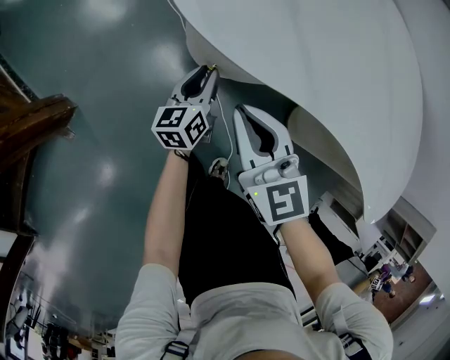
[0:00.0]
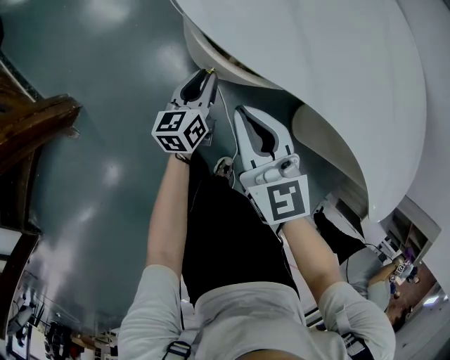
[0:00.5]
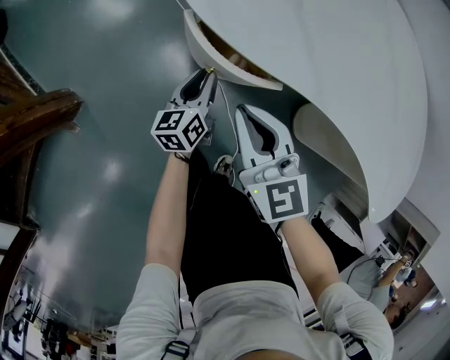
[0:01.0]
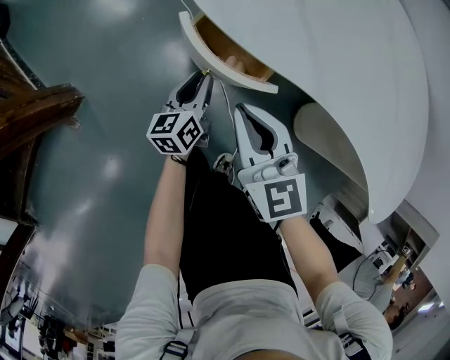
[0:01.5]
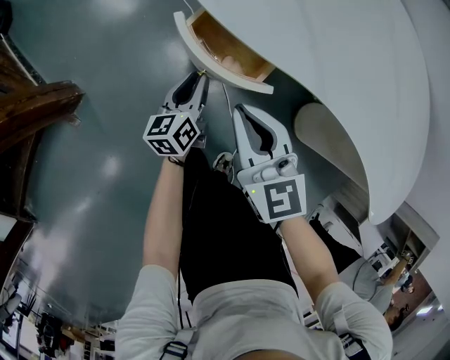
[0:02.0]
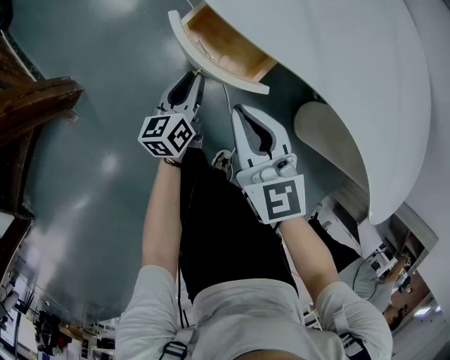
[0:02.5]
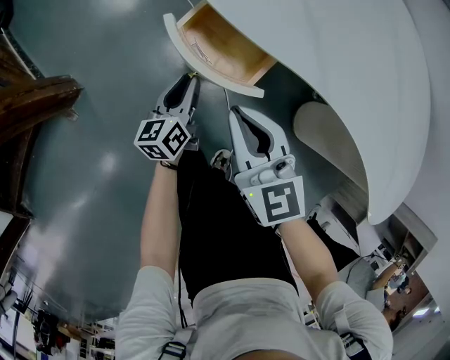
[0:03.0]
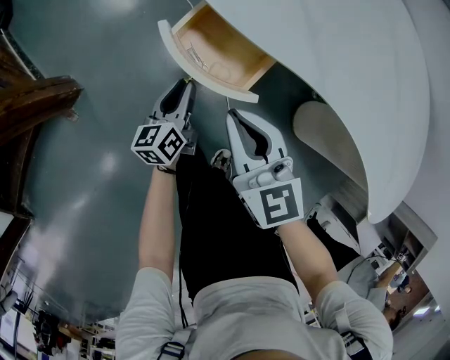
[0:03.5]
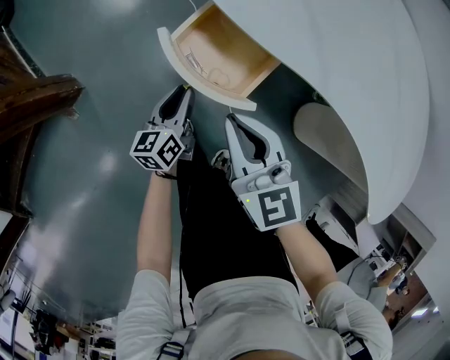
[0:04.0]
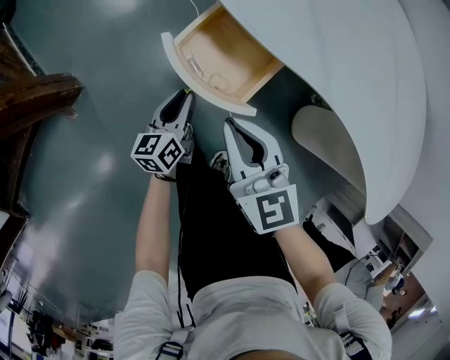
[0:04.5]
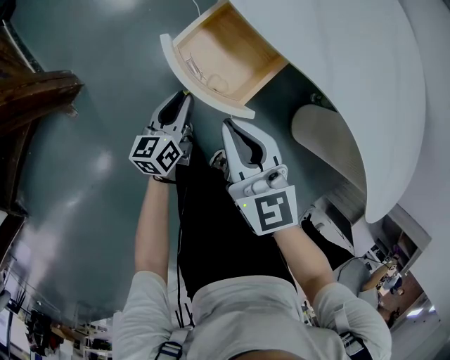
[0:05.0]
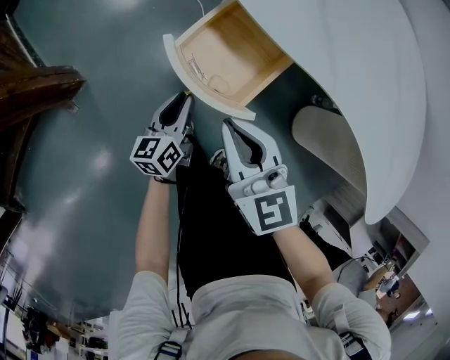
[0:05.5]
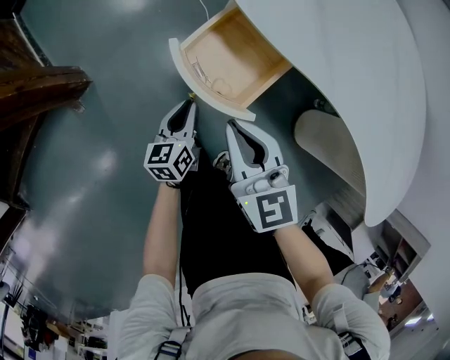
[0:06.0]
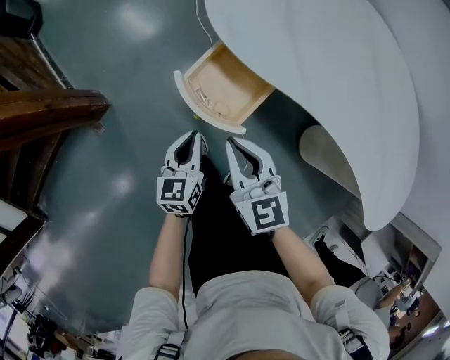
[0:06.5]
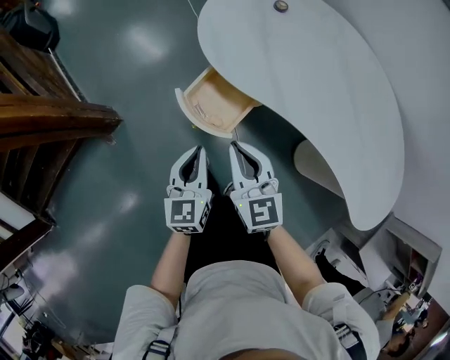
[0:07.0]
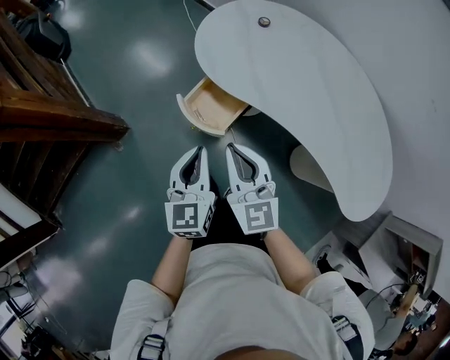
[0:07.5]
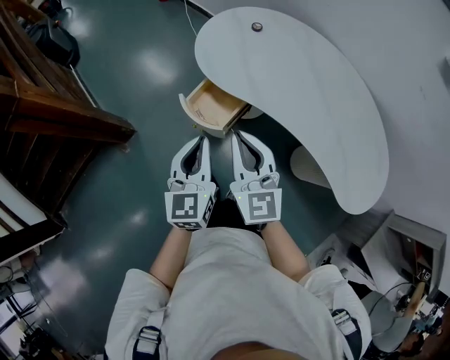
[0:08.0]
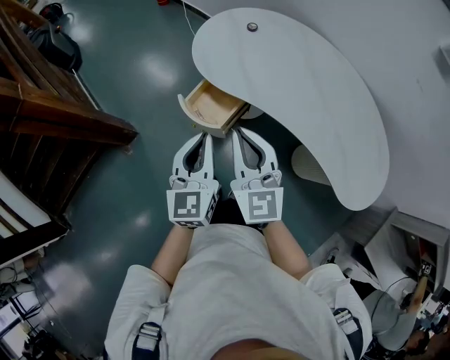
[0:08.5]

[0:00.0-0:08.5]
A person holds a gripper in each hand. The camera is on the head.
0:00.0 to 0:02.0: The left gripper shifts about 5 cm backward.
0:02.0 to 0:04.0: The left gripper moves backward, about 5 cm.
0:04.0 to 0:06.5: The left gripper shifts some 15 cm upward, and turns by about 20 degrees; the right gripper is displaced upward by roughly 5 cm.
0:06.5 to 0:08.5: Both grippers move upward, about 35 cm. The left gripper turns by about 20 degrees; the right gripper changes its angle by about 20 degrees.

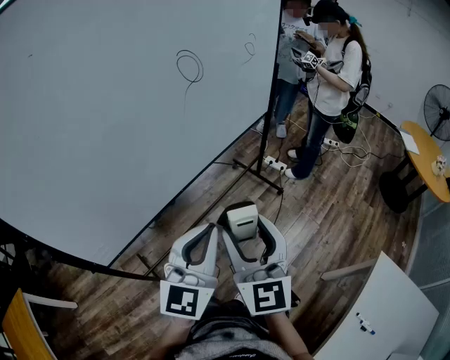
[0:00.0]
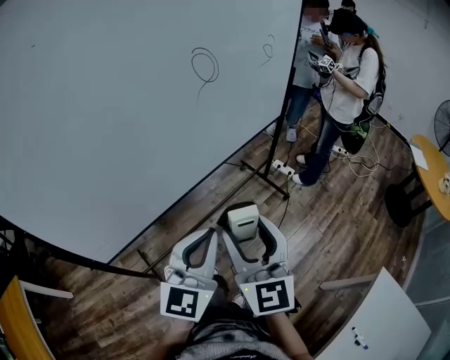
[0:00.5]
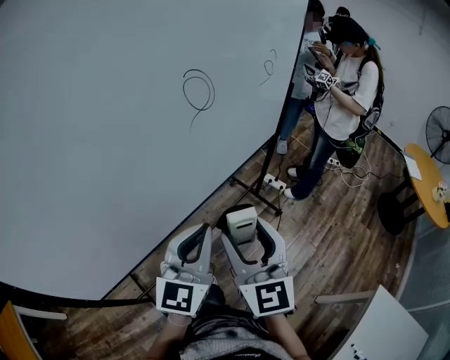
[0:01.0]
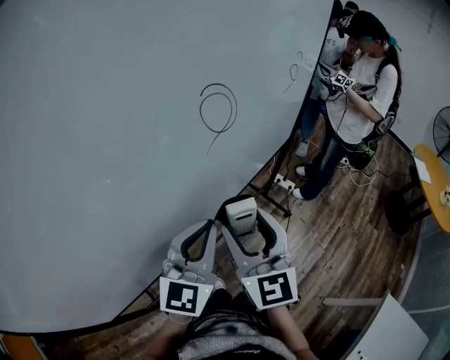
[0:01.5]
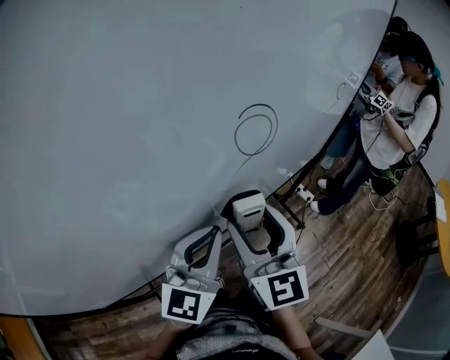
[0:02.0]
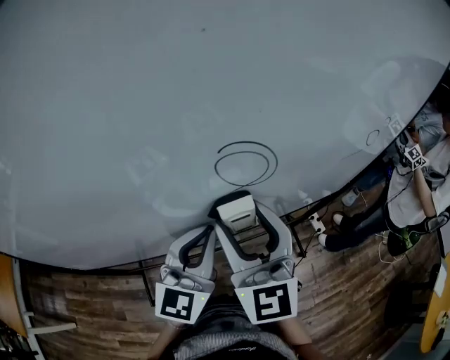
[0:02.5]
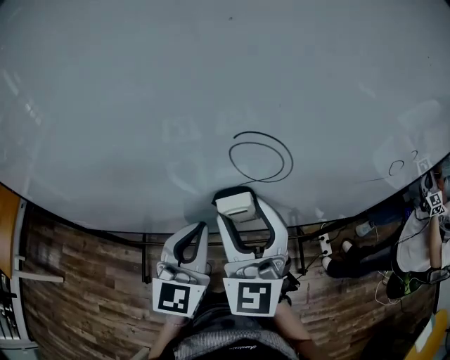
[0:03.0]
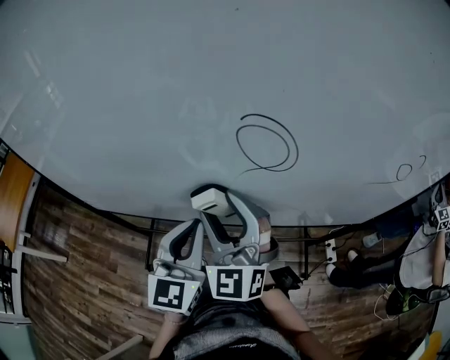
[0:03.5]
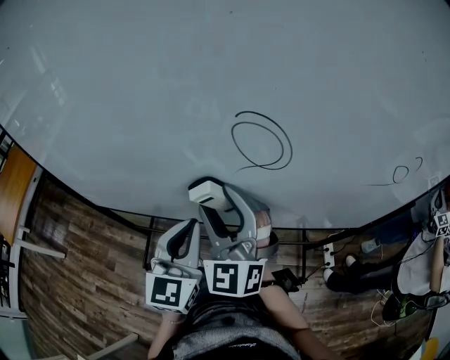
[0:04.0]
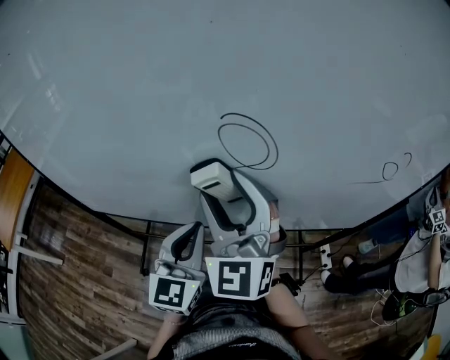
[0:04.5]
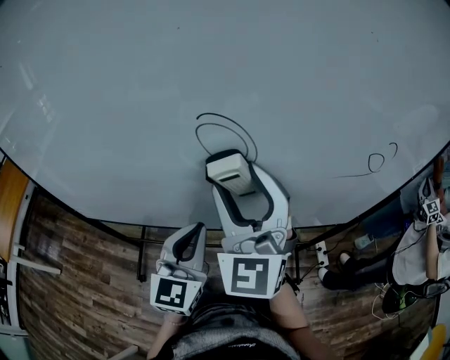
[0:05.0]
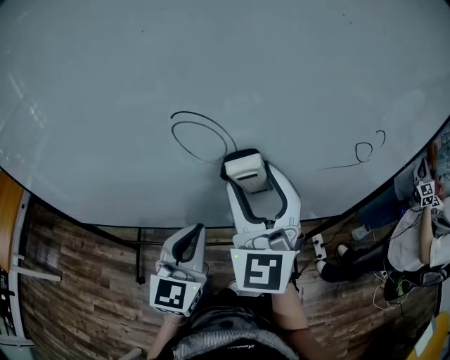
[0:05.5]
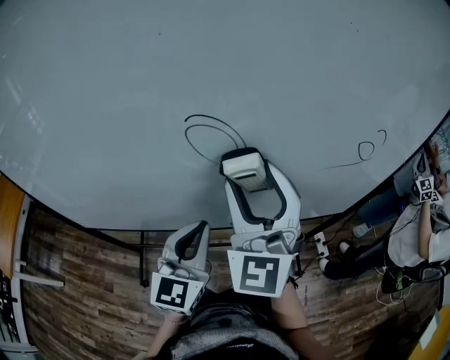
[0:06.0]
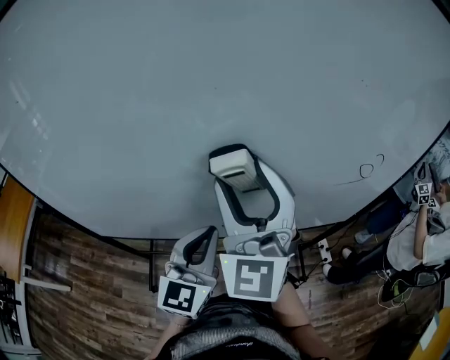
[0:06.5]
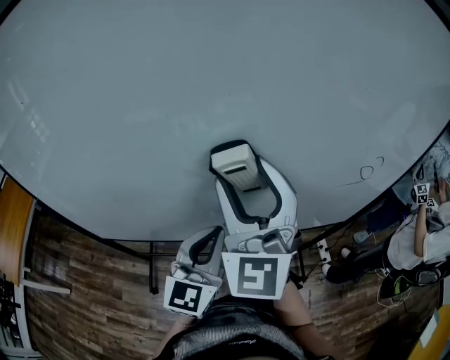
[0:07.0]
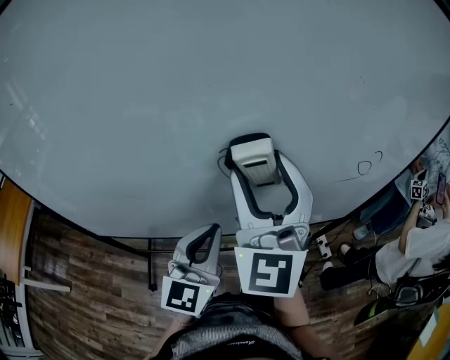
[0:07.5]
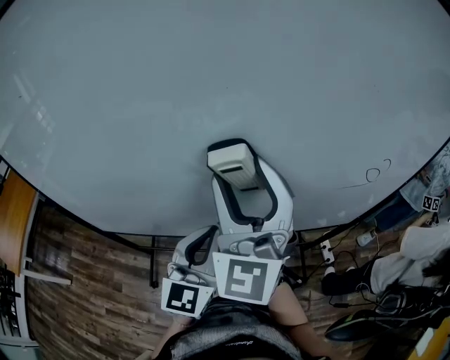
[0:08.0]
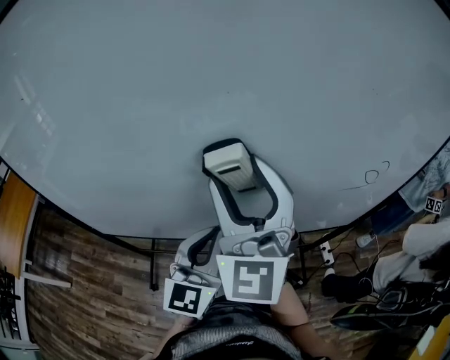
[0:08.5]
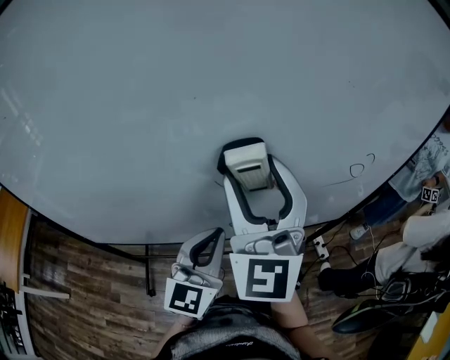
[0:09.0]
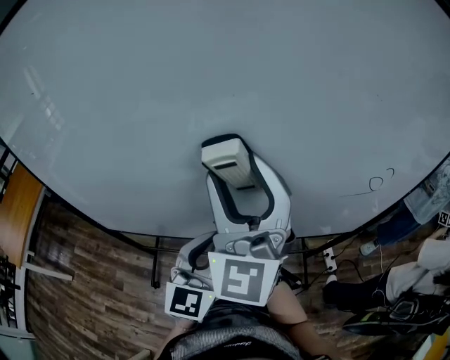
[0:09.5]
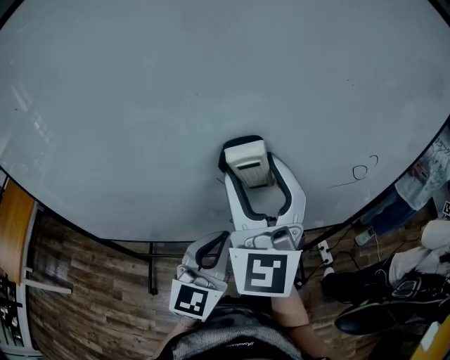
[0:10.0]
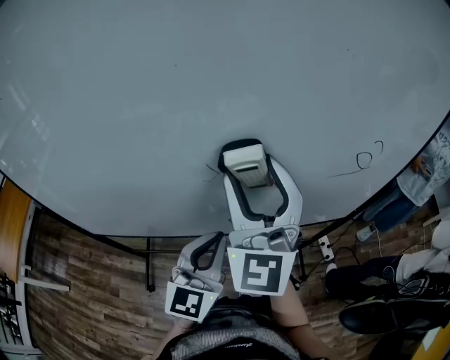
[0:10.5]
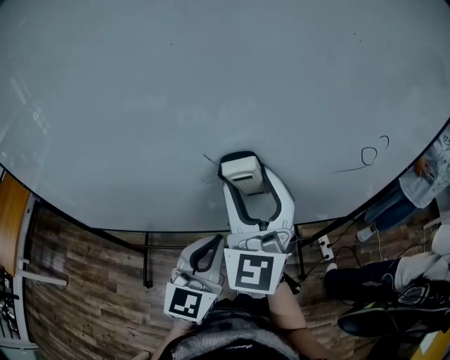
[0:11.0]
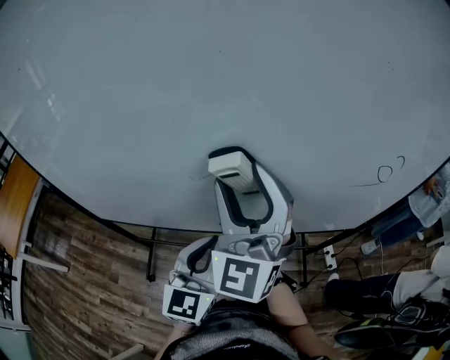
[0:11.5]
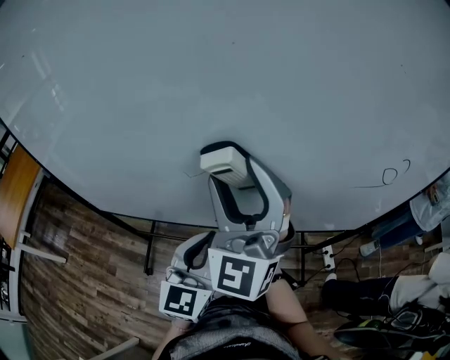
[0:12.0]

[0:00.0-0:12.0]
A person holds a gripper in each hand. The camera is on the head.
0:00.0 to 0:02.0: The two grippers go some 25 cm forward.
0:02.0 to 0:04.0: The left gripper swivels approximately 50 degrees. Meanwhile the right gripper ends up approximately 5 cm from where it was, and changes its angle by roughly 50 degrees.
0:04.0 to 0:06.0: The right gripper travels to the right and upward by some 15 cm, and swivels about 20 degrees. Meanwhile the left gripper goes roughly 10 cm to the right.
0:06.0 to 0:08.0: The left gripper goes roughly 5 cm upward. Meanwhile the right gripper is displaced upward and to the left by some 10 cm.
0:08.0 to 0:10.0: The right gripper swings left and right, some 5 cm each way, with 2 reversals. The left gripper moves left and right over roughly 5 cm, changing direction 2 times.
0:10.0 to 0:12.0: The right gripper shifts about 10 cm downward and to the left. The left gripper moves downward, approximately 5 cm.

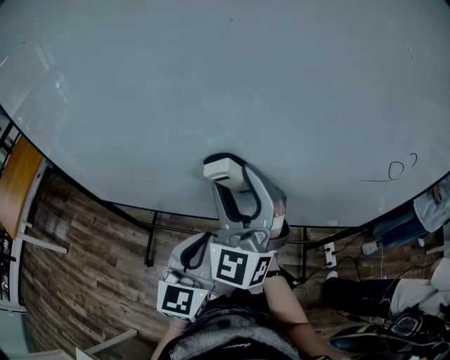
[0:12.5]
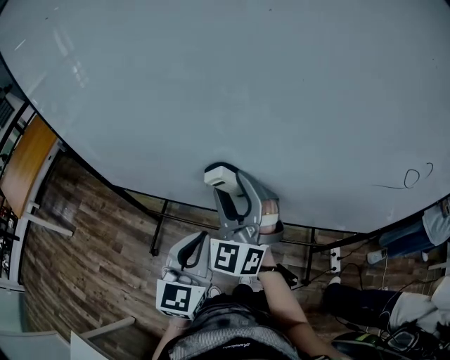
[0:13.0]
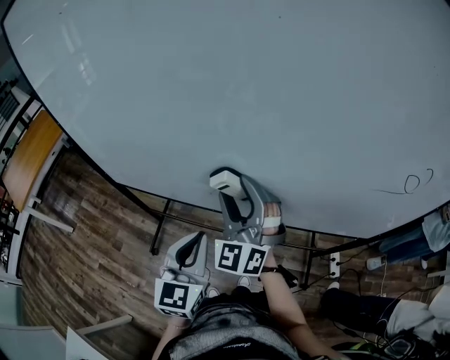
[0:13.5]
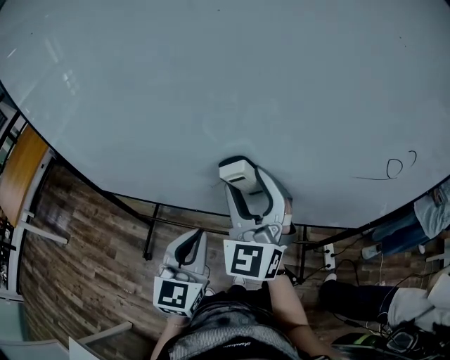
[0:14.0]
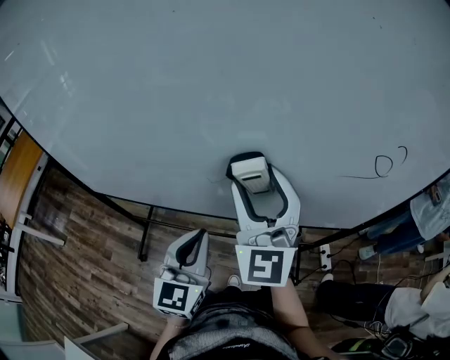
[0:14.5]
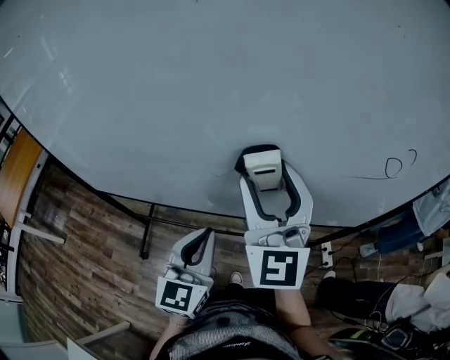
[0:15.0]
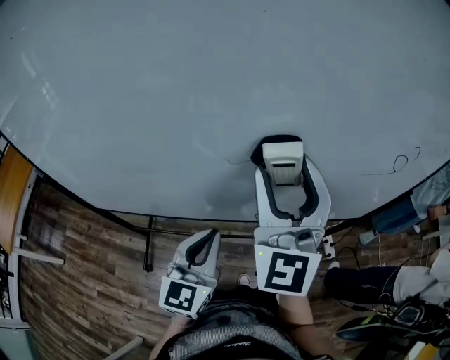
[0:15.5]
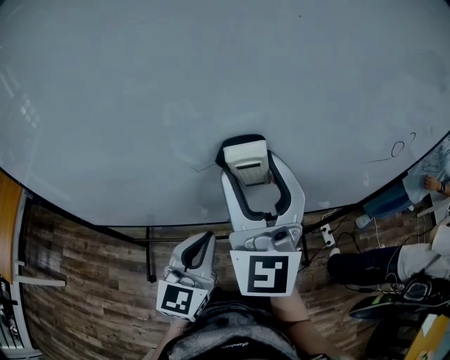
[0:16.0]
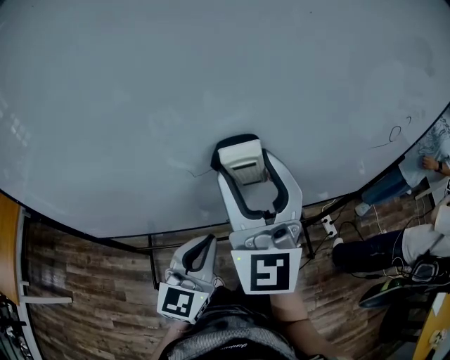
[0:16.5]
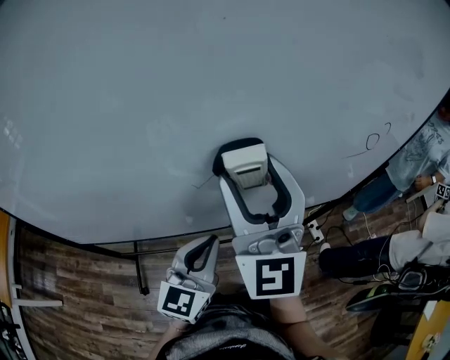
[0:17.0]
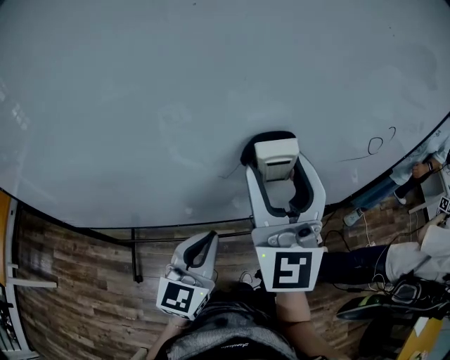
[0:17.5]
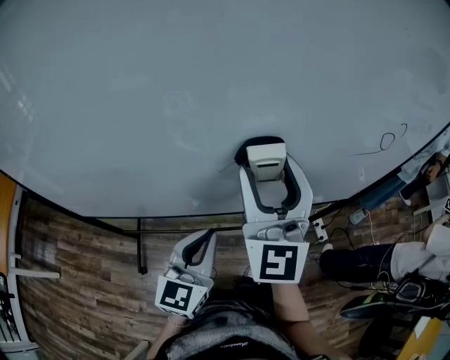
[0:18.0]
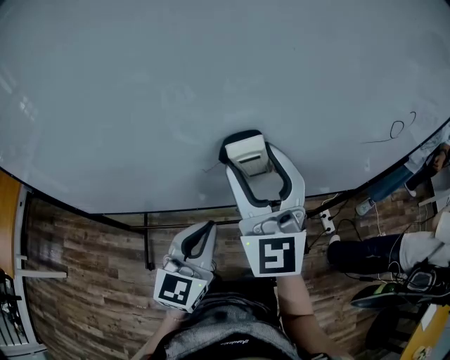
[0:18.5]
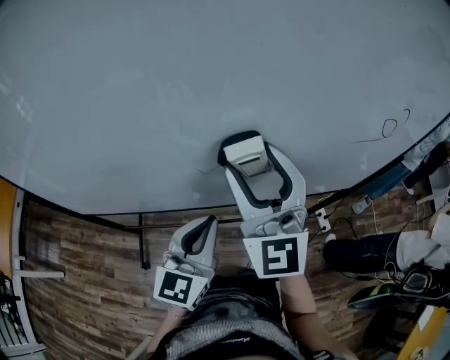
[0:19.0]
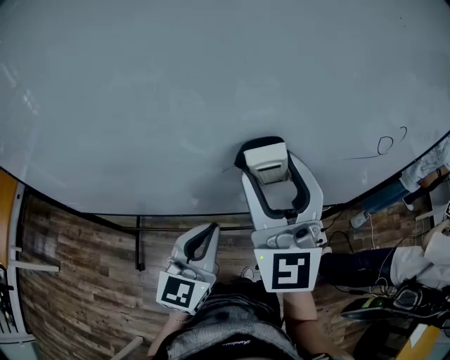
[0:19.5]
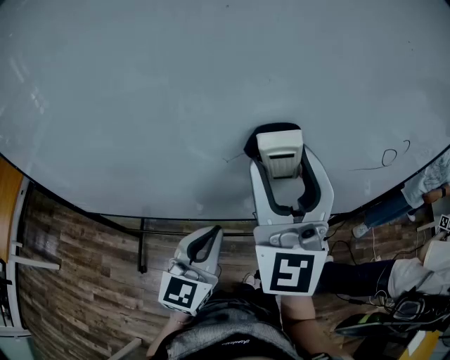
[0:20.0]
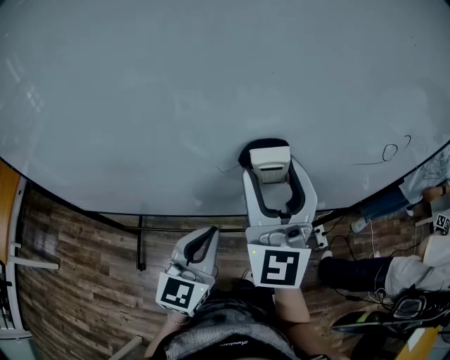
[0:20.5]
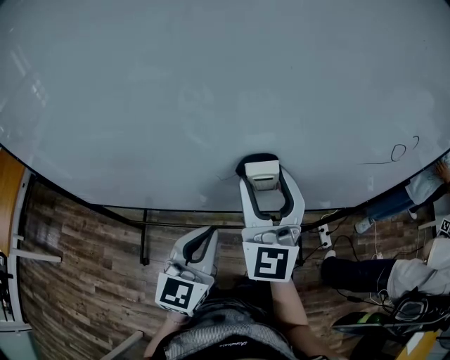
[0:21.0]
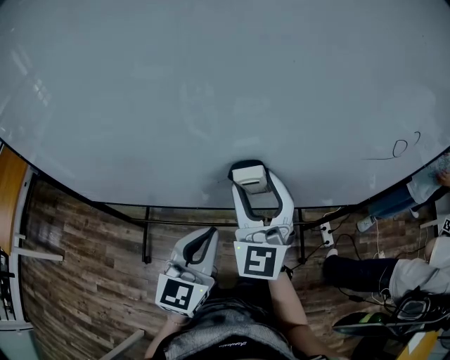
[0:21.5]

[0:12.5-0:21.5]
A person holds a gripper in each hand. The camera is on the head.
0:12.5 to 0:14.5: The right gripper heads to the right, covering roughly 10 cm.
0:14.5 to 0:17.0: The left gripper goes to the left and returns, roughly 10 cm each way, and swivels approximately 30 degrees. The right gripper heads upward and to the left, covering some 10 cm.
0:17.0 to 0:19.5: The right gripper moves left and right over about 10 cm, changing direction 2 times.
0:19.5 to 0:21.5: The right gripper travels downward and to the left by roughly 10 cm. Meanwhile the left gripper ends up about 5 cm from where it was.
